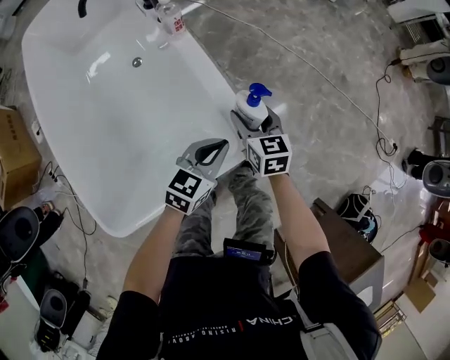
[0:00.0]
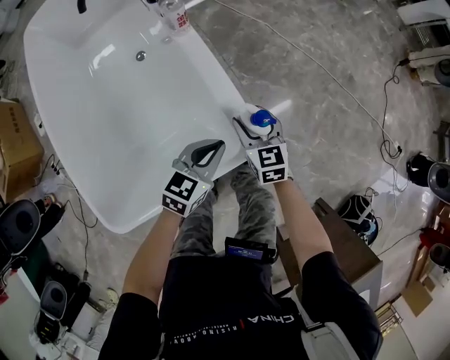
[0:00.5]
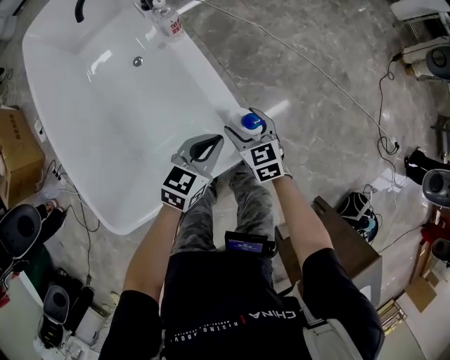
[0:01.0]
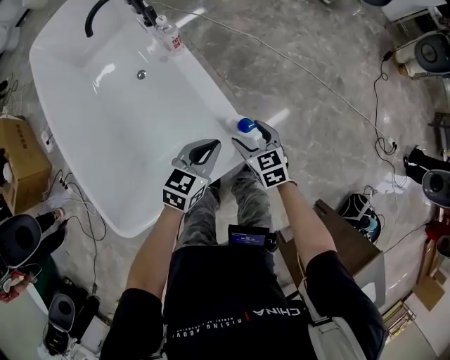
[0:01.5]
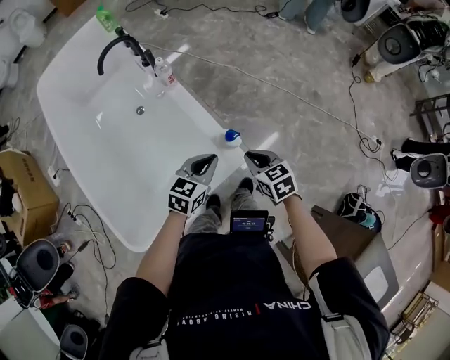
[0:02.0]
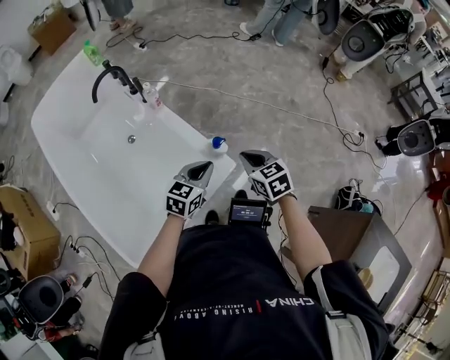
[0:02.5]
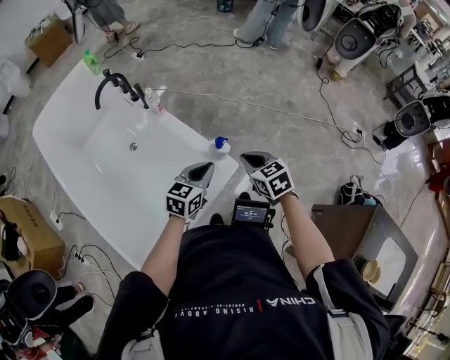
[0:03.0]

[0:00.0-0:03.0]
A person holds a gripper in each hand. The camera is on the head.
0:00.0 to 0:01.5: The right gripper moves backward, about 5 cm.
0:01.5 to 0:03.0: The right gripper travels upward and backward by some 25 cm, and closes up. The left gripper moves upward and backward, approximately 15 cm.

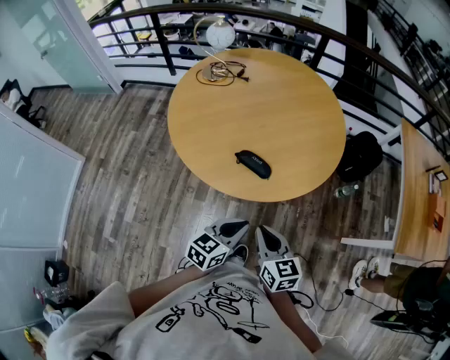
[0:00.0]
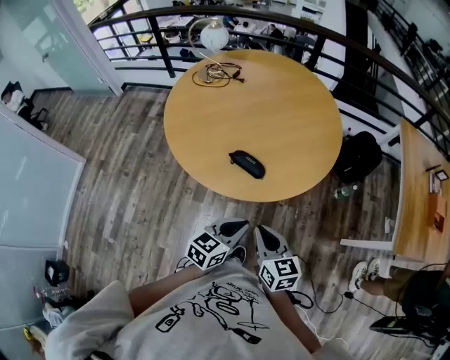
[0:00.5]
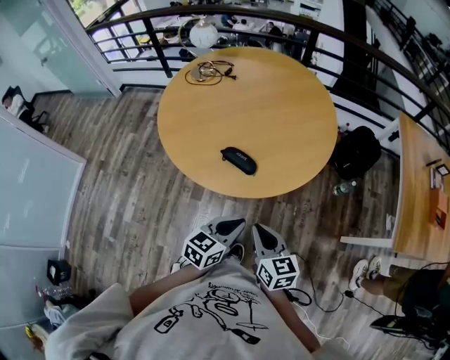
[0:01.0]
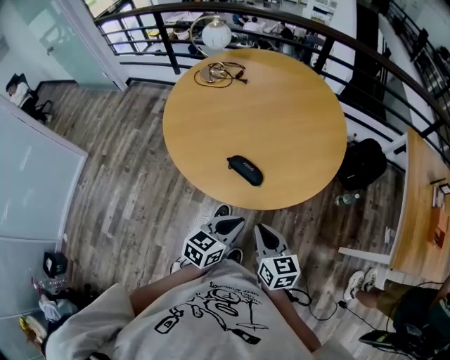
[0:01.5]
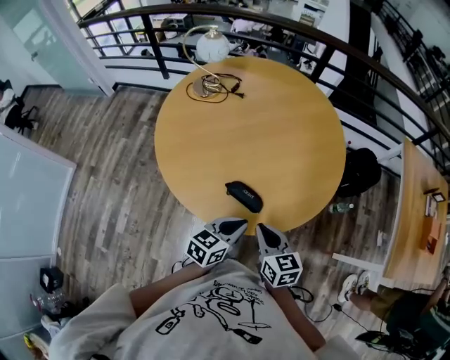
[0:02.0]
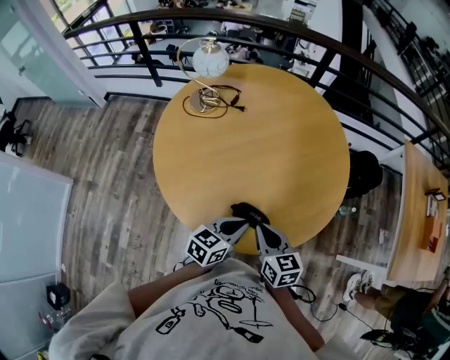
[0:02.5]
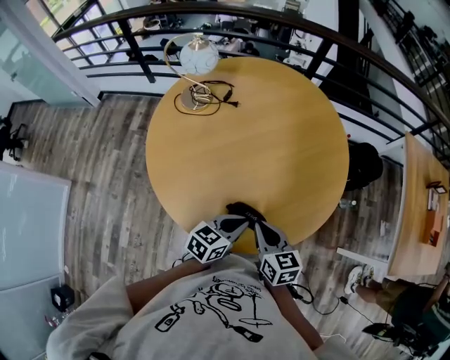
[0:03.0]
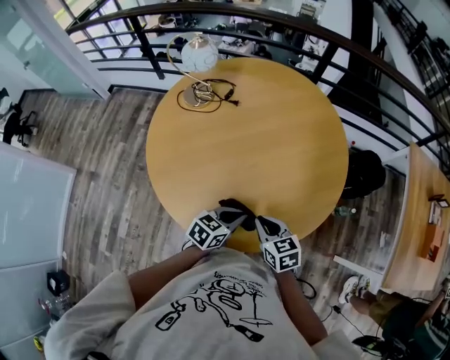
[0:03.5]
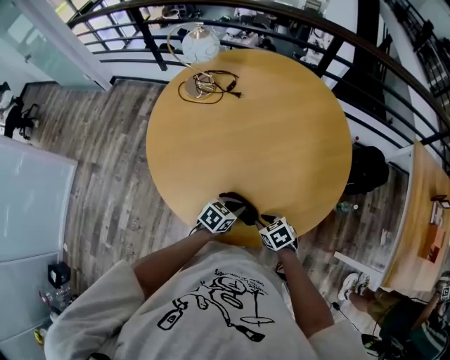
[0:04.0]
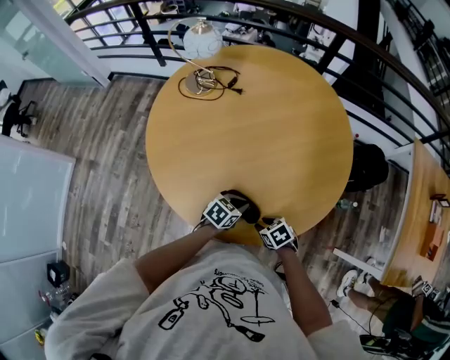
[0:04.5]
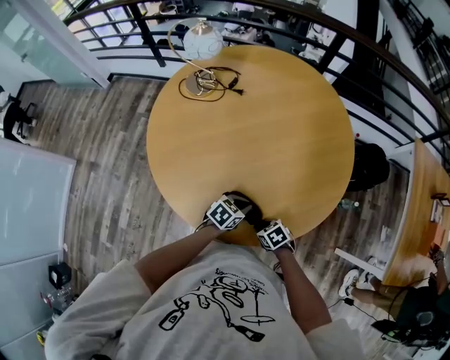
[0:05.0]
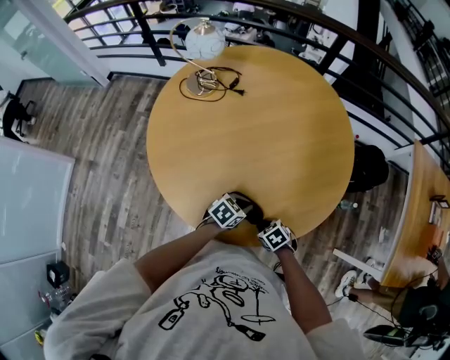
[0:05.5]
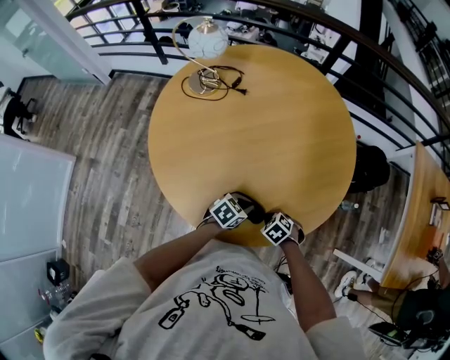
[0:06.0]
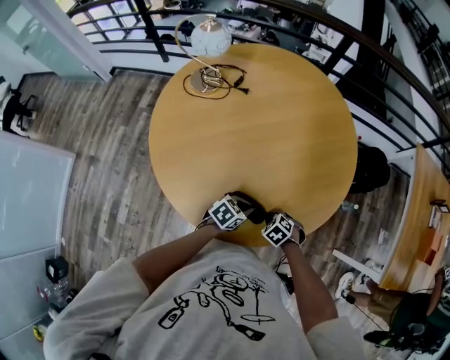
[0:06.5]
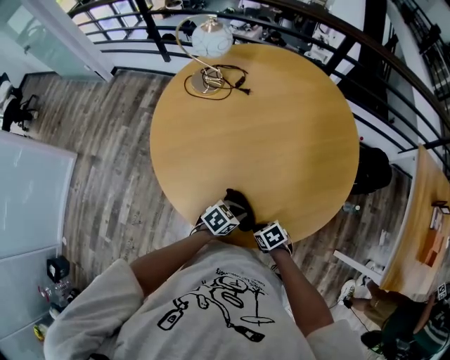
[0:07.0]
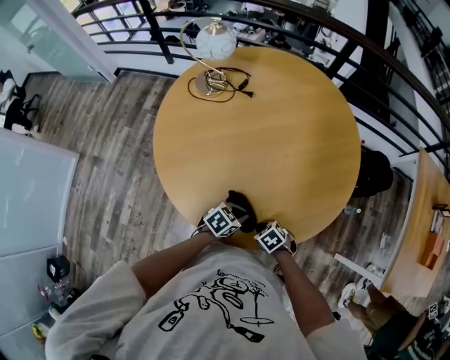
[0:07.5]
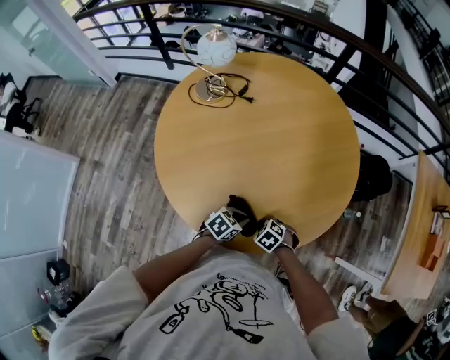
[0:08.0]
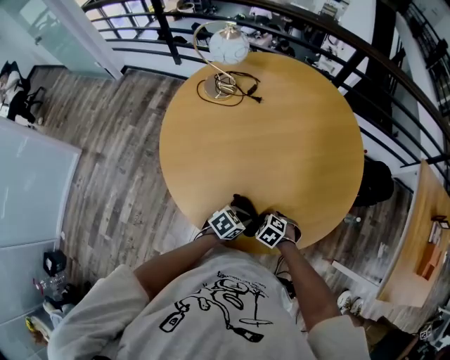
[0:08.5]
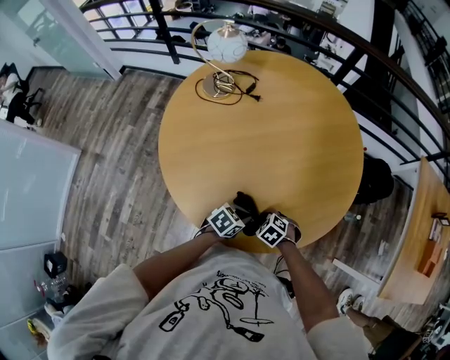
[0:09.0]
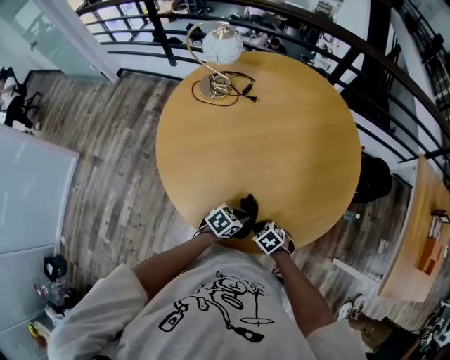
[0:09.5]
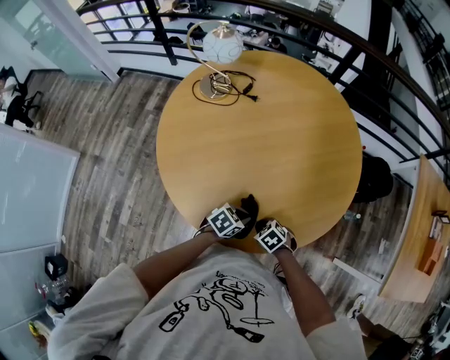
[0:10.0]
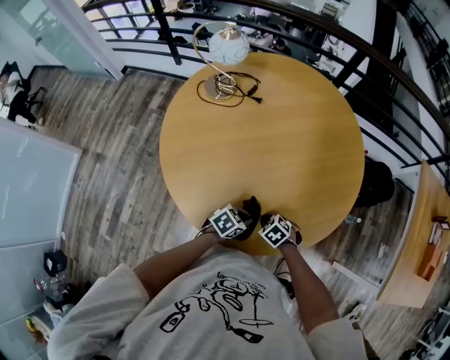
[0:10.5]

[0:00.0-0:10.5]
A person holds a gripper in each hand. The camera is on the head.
0:00.0 to 0:02.0: The two grippers go some 15 cm forward.
0:02.0 to 0:04.0: Both grippers travel together downward, roughly 15 cm. The left gripper swivels approximately 20 degrees. The right gripper tips its fingers downward by about 30 degrees.
0:04.0 to 0:06.5: The right gripper heads downward, covering roughly 5 cm, and turns by about 30 degrees.
0:06.5 to 0:08.5: The right gripper shifts by some 5 cm.

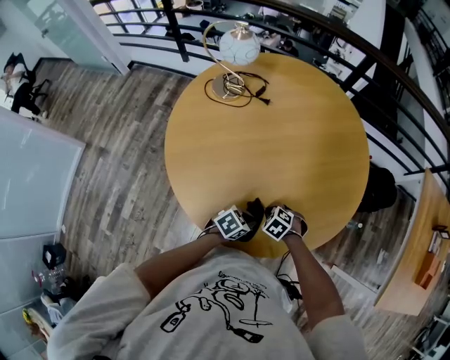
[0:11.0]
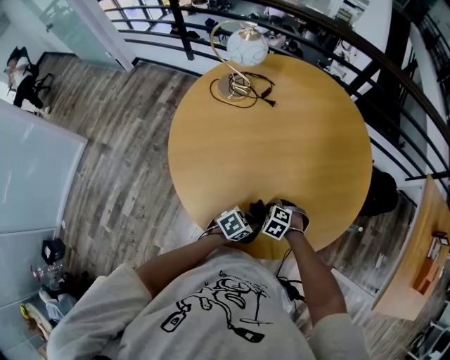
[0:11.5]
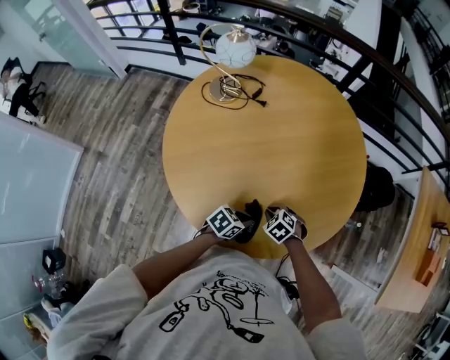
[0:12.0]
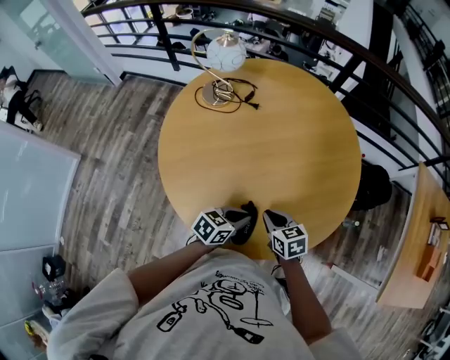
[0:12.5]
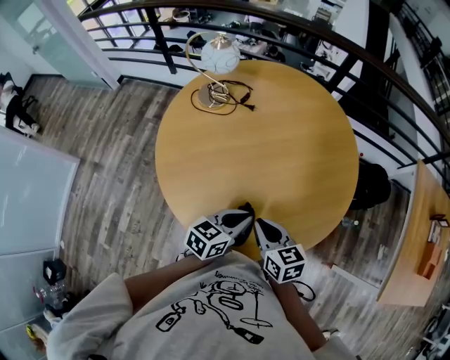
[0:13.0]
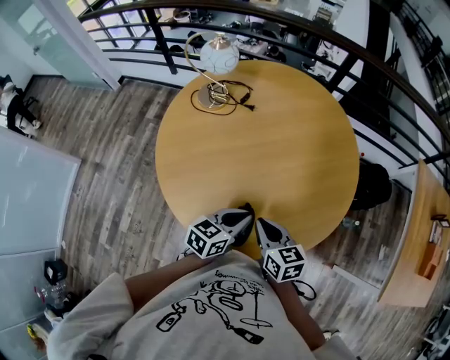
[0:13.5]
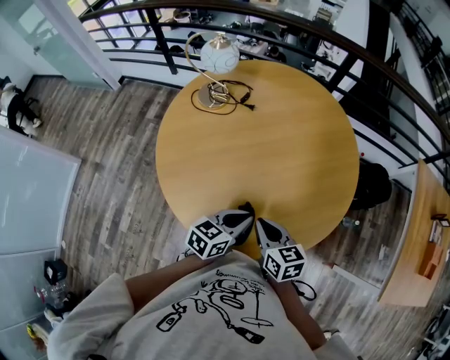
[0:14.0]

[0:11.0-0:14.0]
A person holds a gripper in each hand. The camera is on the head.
0:11.0 to 0:12.5: The two grippers go some 10 cm upward. The left gripper rotates about 20 degrees. The right gripper angles its fingers upward, by about 30 degrees.
0:12.5 to 0:14.0: The two grippers go roughly 10 cm upward.

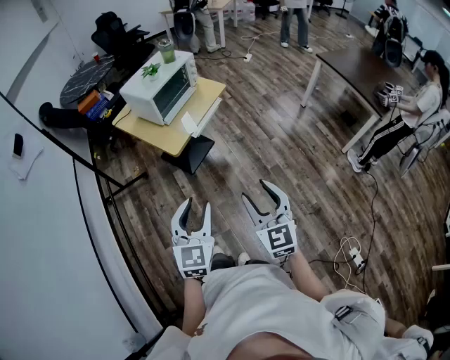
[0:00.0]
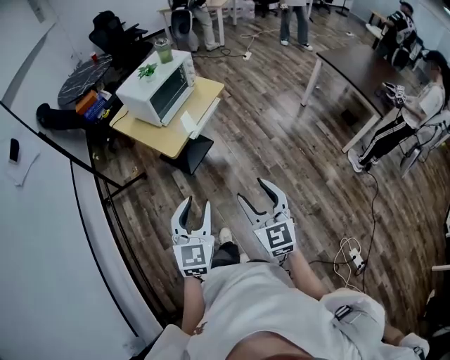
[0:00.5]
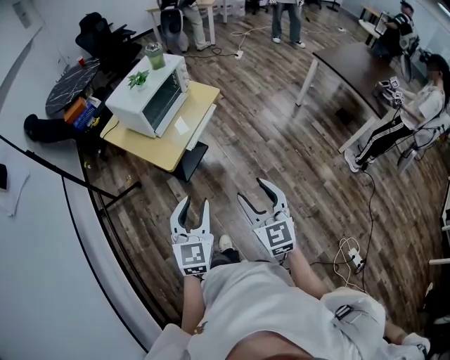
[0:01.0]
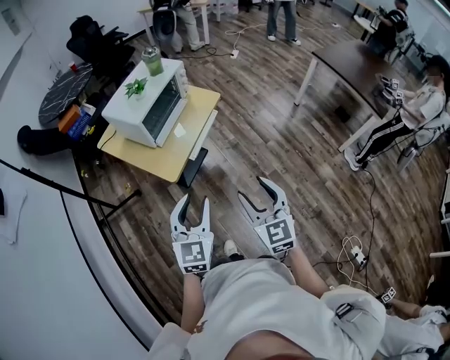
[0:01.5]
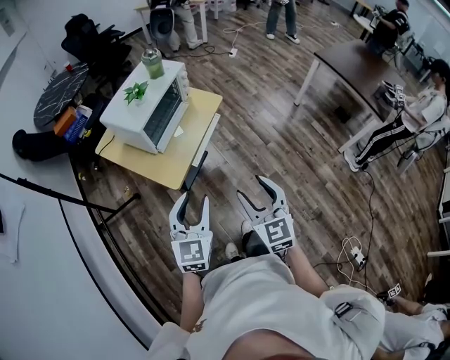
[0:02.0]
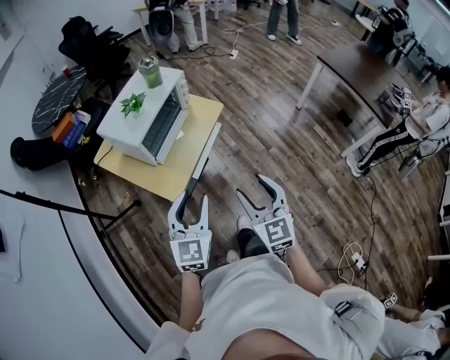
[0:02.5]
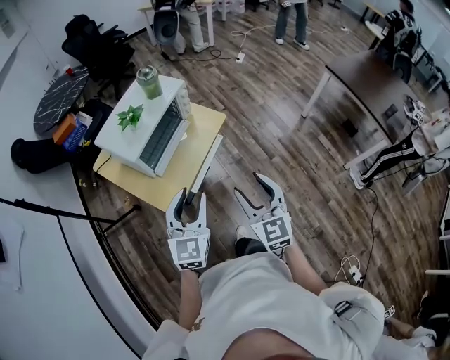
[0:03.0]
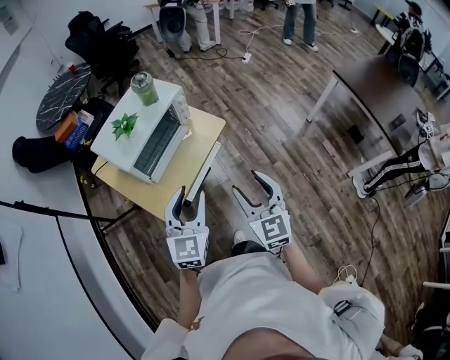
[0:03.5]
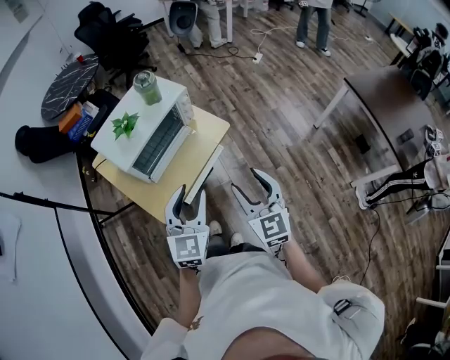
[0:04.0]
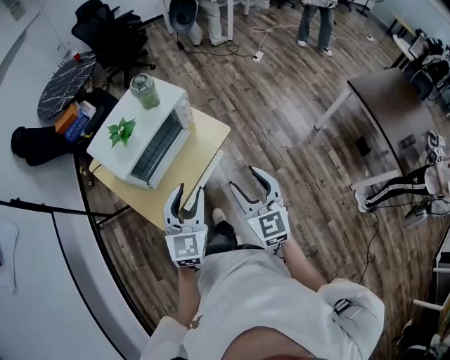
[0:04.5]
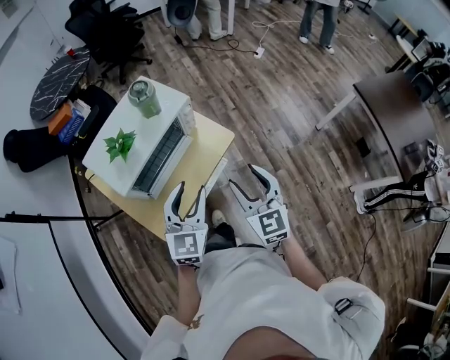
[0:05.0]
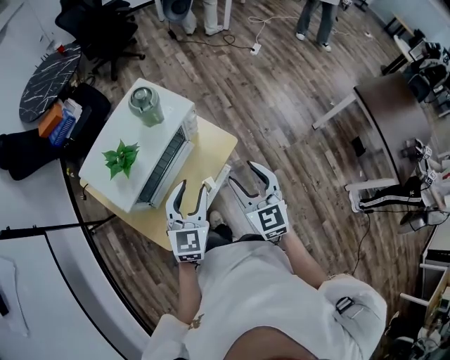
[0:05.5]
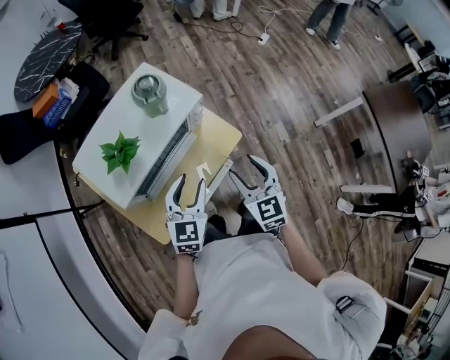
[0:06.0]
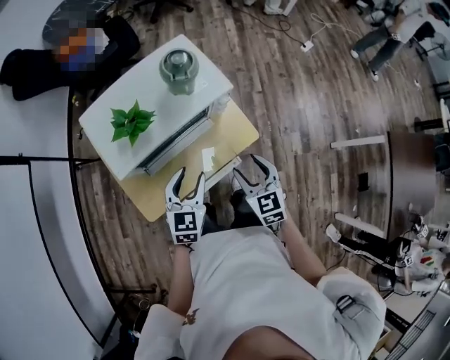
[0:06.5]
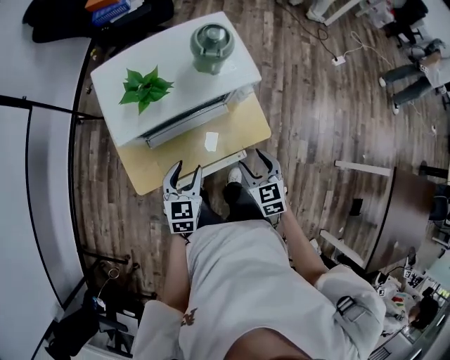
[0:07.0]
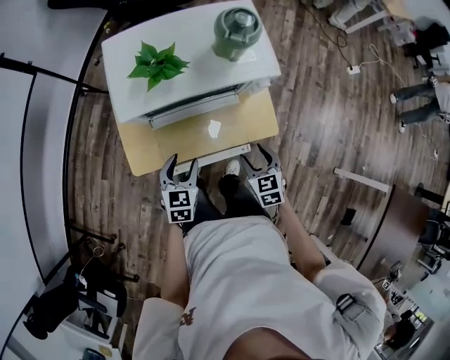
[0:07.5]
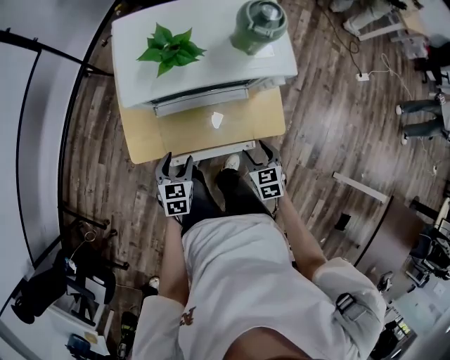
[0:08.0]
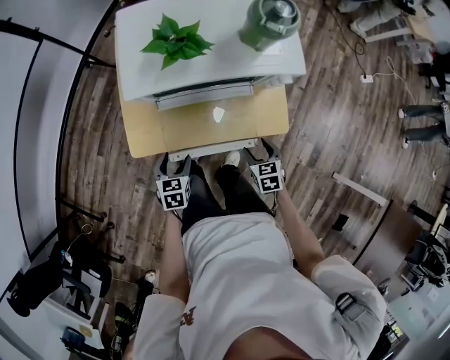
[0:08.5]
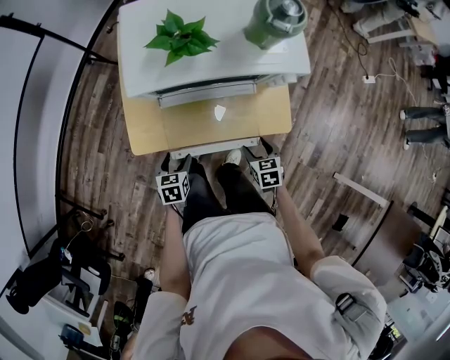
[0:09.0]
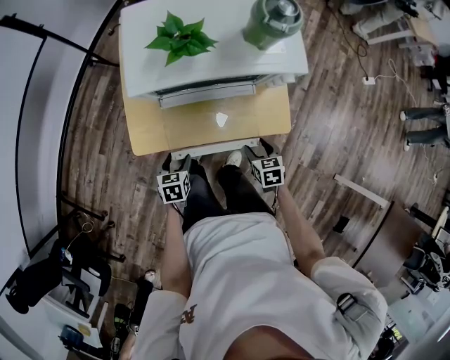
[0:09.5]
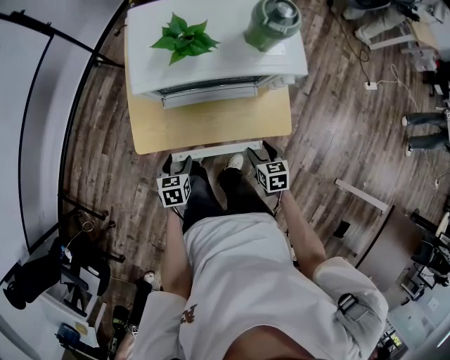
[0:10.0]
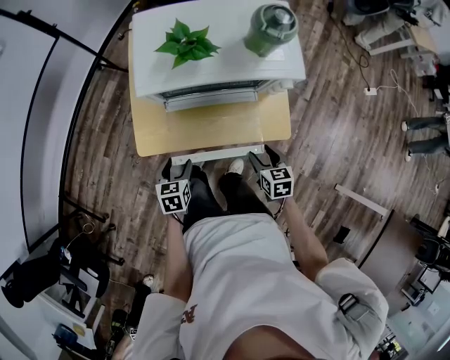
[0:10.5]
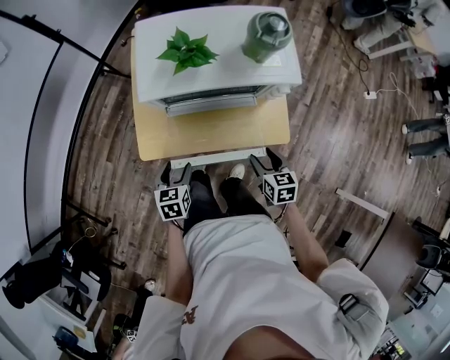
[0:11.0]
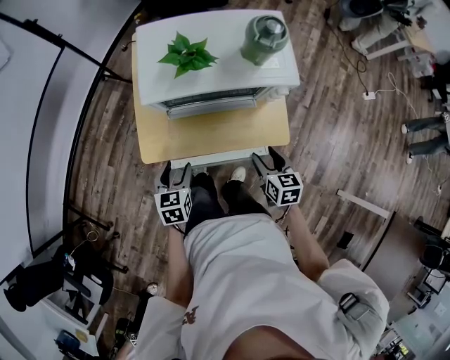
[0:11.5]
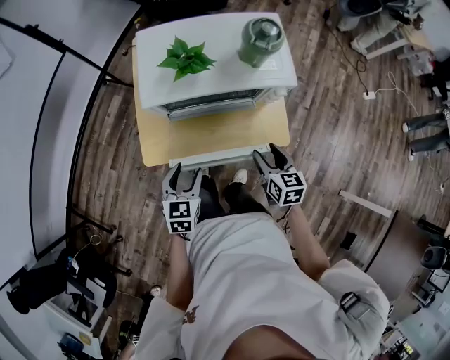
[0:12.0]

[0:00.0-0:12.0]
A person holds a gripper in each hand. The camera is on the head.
0:00.0 to 0:02.0: Both grippers travel together forward, roughly 25 cm.
0:02.0 to 0:04.0: The left gripper travels forward and to the right by about 25 cm; the right gripper travels forward by about 25 cm.
0:04.0 to 0:06.0: The grippers both shift forward and downward by about 25 cm.
0:06.0 to 0:08.0: Both grippers move downward, some 20 cm. The right gripper turns by roughly 40 degrees; the left gripper swivels some 50 degrees.
0:08.0 to 0:10.0: The left gripper heads downward, covering roughly 5 cm.
0:10.0 to 0:12.0: The grippers both shift upward by roughly 15 cm. The left gripper swivels roughly 20 degrees.
